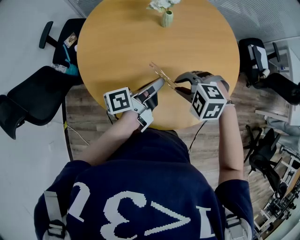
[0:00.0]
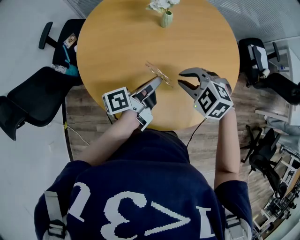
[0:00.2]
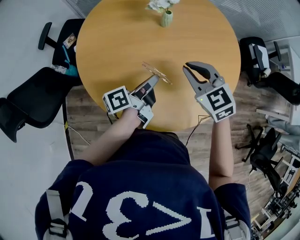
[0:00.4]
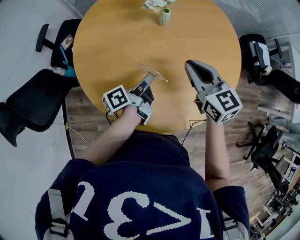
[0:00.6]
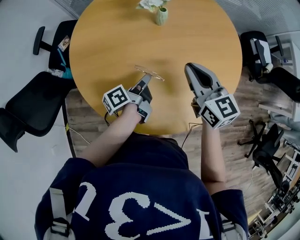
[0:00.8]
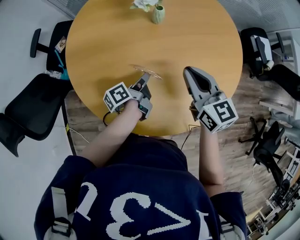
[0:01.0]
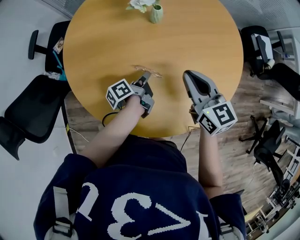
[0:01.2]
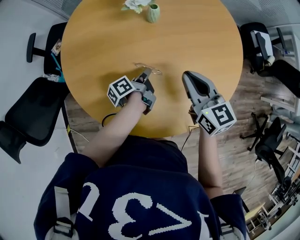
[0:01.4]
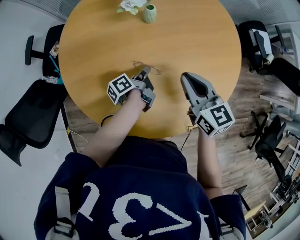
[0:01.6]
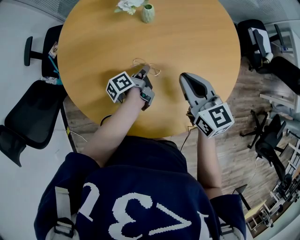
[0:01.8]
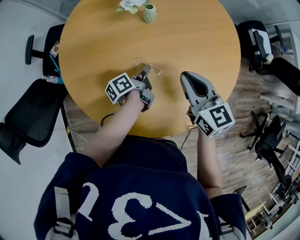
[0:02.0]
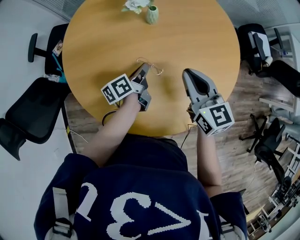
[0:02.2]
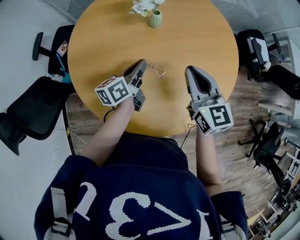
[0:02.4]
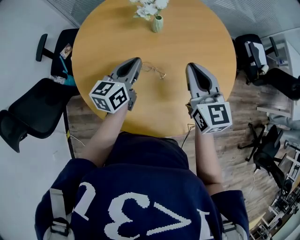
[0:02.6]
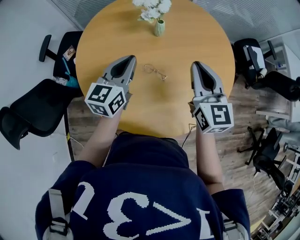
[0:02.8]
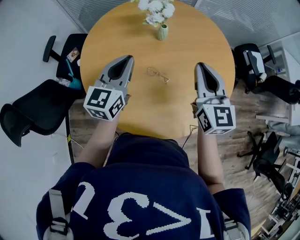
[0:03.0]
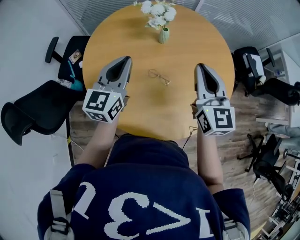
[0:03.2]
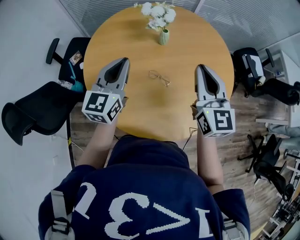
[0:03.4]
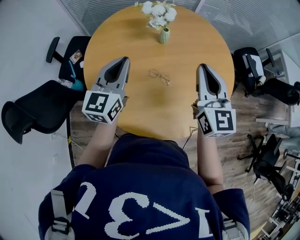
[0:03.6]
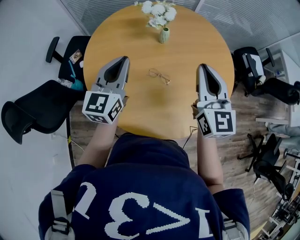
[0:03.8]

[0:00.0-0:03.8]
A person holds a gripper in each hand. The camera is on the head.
0:00.0 to 0:01.2: The right gripper moves forward and to the right, some 10 cm, and angles its fingers upward, by about 50 degrees, while the left gripper heads downward and forward, covering roughly 20 cm, and turns by some 30 degrees.
0:01.2 to 0:02.6: The left gripper goes approximately 20 cm upward, and rolls clockwise, seen from behind, by approximately 70 degrees; the right gripper travels upward by about 10 cm.
0:02.6 to 0:03.8: The right gripper goes about 10 cm upward. Meanwhile the left gripper travels upward and to the left by roughly 15 cm, and turns by approximately 30 degrees.

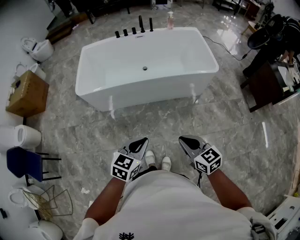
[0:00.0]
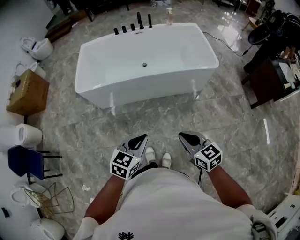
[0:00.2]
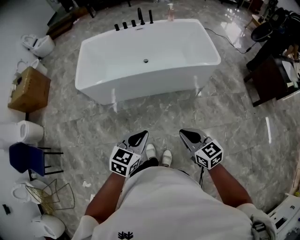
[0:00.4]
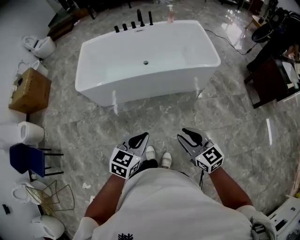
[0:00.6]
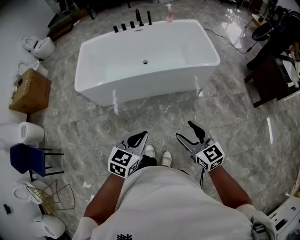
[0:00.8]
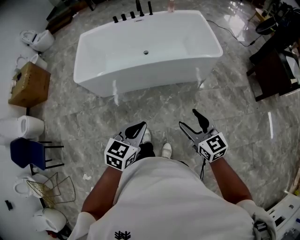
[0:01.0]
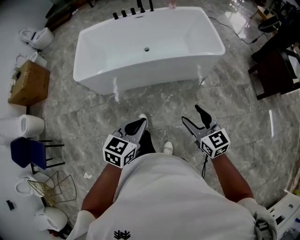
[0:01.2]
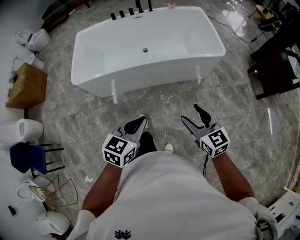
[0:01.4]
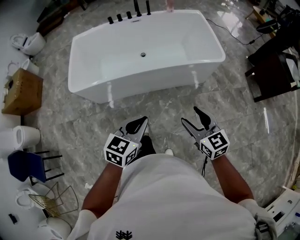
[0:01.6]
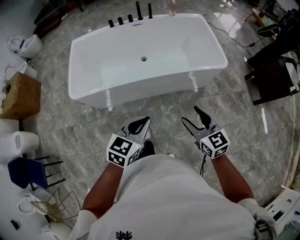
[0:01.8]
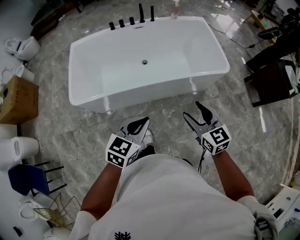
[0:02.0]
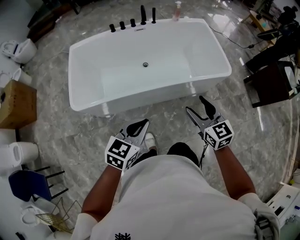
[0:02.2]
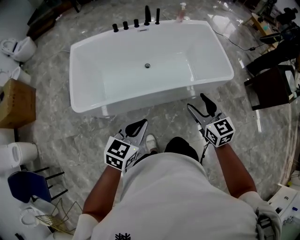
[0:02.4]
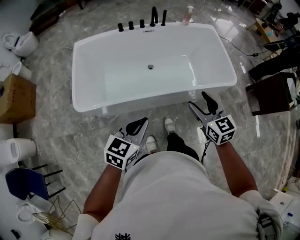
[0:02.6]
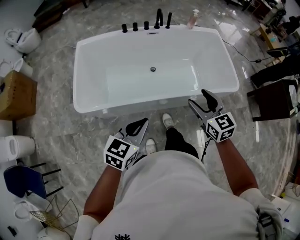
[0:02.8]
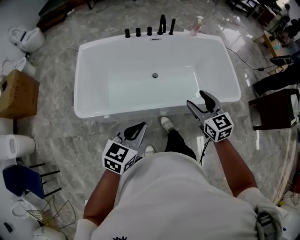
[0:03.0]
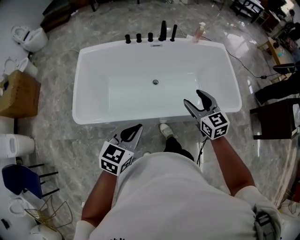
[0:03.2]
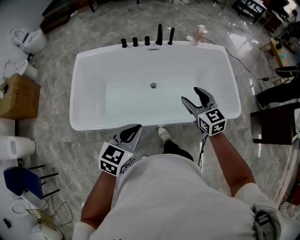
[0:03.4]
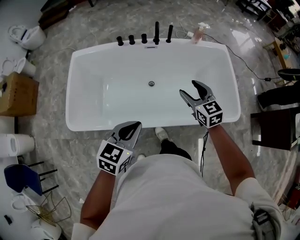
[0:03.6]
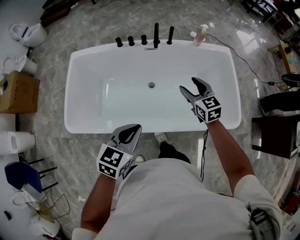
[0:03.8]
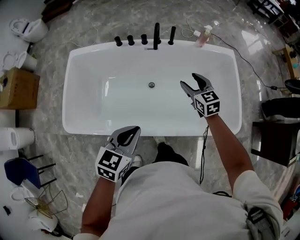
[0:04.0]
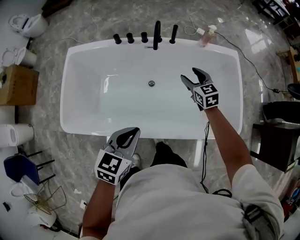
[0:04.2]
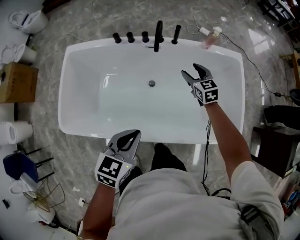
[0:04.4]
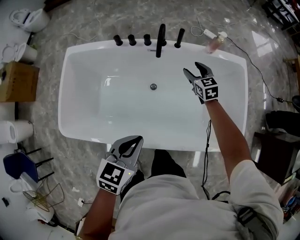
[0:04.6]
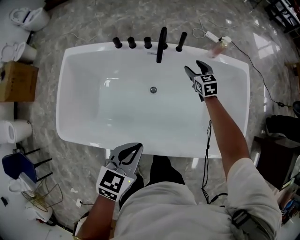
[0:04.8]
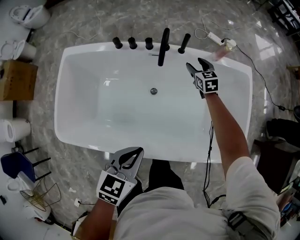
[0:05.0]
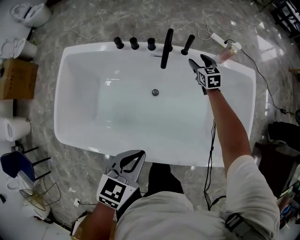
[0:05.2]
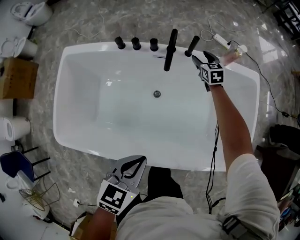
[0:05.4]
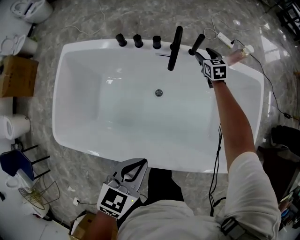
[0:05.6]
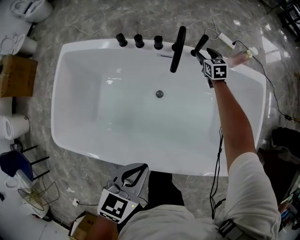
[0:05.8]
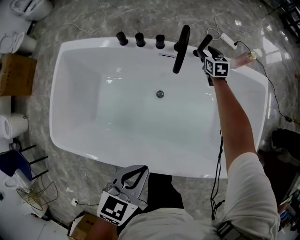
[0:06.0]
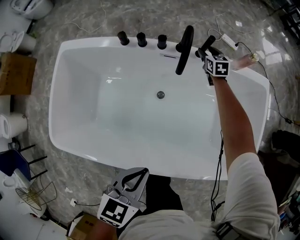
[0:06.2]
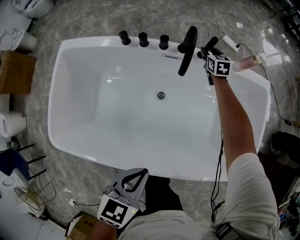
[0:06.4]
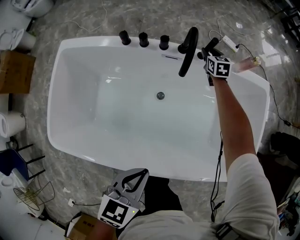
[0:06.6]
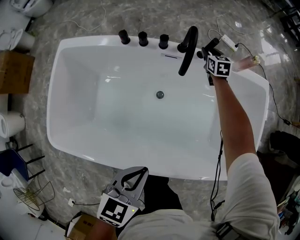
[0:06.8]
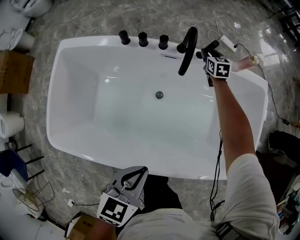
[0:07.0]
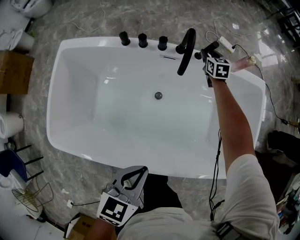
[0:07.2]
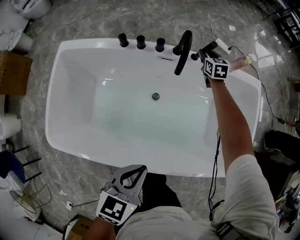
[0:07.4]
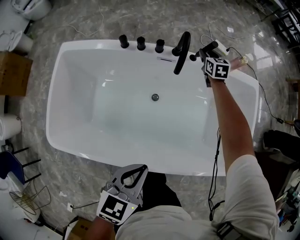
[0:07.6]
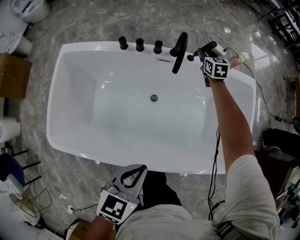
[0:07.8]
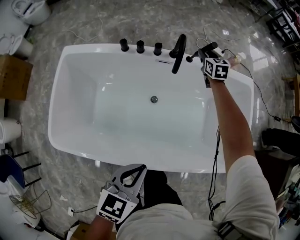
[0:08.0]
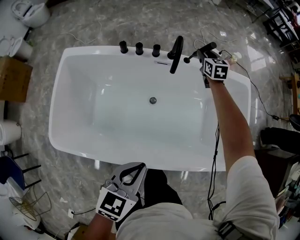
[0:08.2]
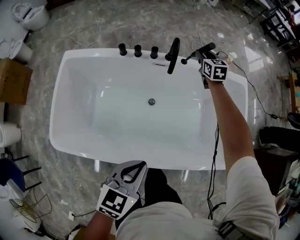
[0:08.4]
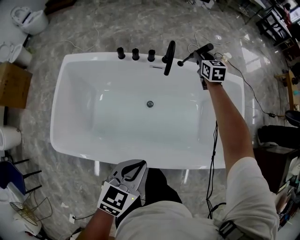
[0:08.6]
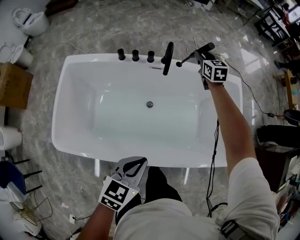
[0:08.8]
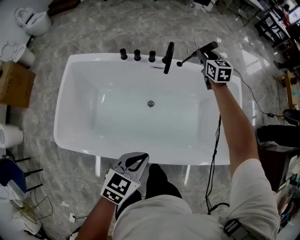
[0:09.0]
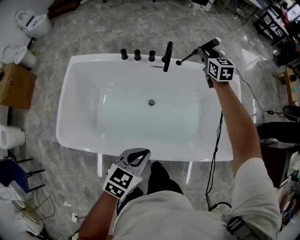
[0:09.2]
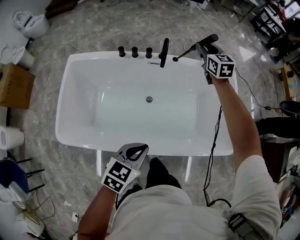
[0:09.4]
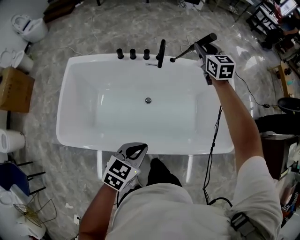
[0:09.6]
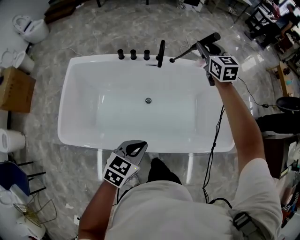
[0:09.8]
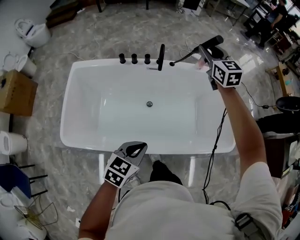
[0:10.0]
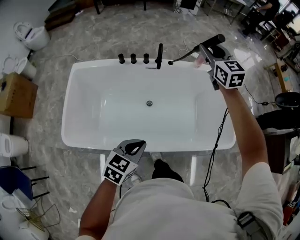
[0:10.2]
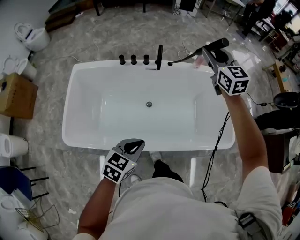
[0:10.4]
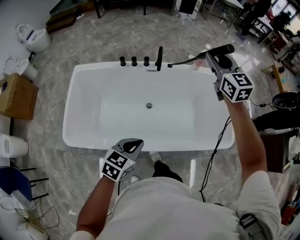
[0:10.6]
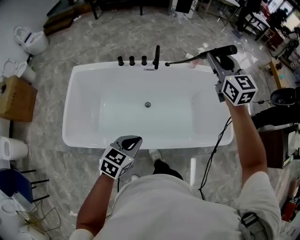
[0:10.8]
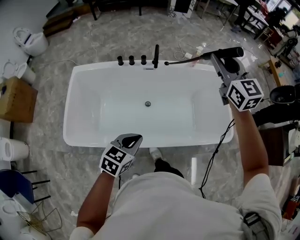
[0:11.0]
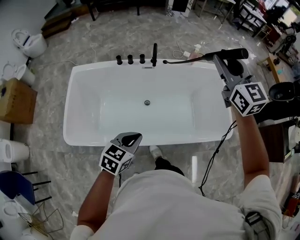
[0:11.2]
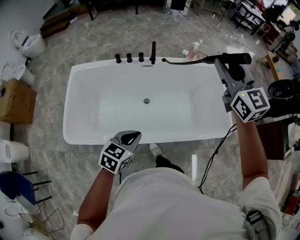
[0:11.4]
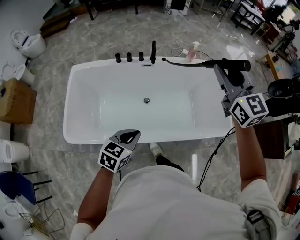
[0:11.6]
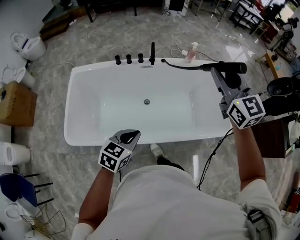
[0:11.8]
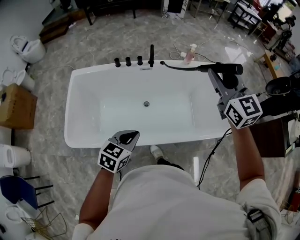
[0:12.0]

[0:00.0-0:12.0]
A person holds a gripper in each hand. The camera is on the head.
0:00.0 to 0:01.6: The two grippers go some 15 cm forward. The right gripper opens.
0:01.6 to 0:03.0: The two grippers go about 35 cm forward and to the left.
0:03.0 to 0:04.4: The right gripper moves forward, approximately 50 cm. The left gripper moves forward and to the right, roughly 35 cm.
0:04.4 to 0:06.0: The left gripper travels downward and forward by approximately 10 cm. The right gripper heads forward and downward, covering about 35 cm.
0:06.0 to 0:07.6: The right gripper goes approximately 5 cm upward.
0:07.6 to 0:09.0: The right gripper goes roughly 25 cm upward and backward. Meanwhile the left gripper goes roughly 5 cm backward.
0:09.0 to 0:10.4: The right gripper goes roughly 30 cm upward and backward. Meanwhile the left gripper goes some 5 cm backward.
0:10.4 to 0:12.0: The right gripper moves backward, roughly 20 cm.

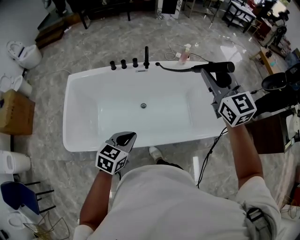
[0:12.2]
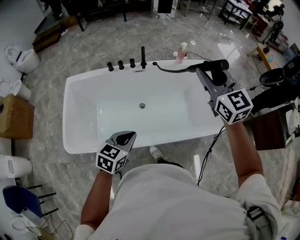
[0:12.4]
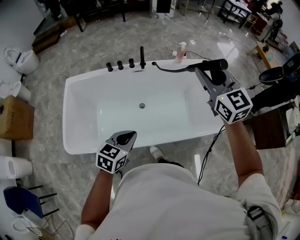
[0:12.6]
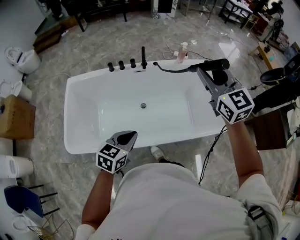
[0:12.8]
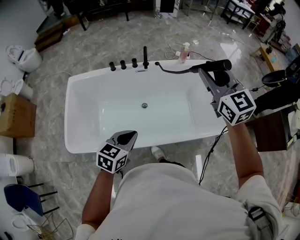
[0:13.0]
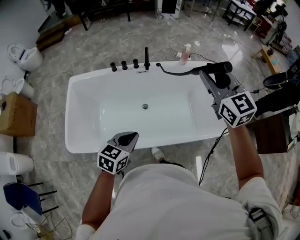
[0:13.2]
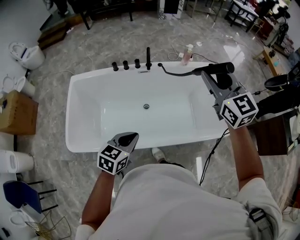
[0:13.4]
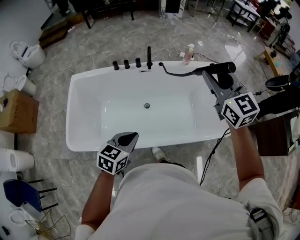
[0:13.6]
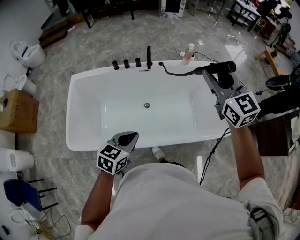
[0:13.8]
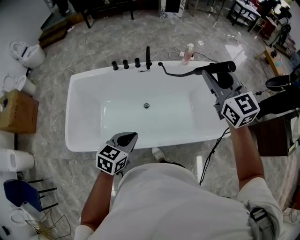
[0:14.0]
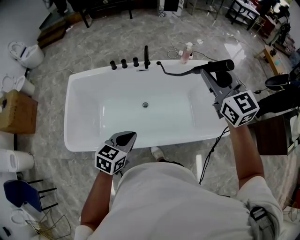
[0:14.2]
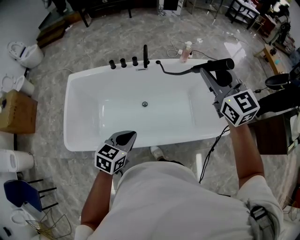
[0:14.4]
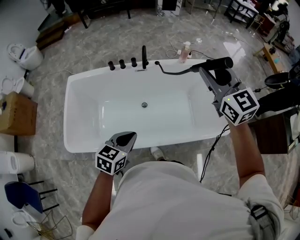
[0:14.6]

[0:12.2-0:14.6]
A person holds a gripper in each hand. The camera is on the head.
0:12.2 to 0:14.6: The grippers move only a little.

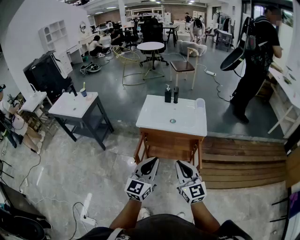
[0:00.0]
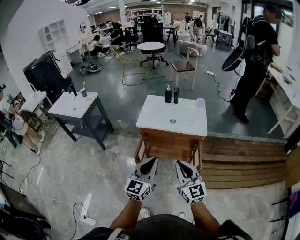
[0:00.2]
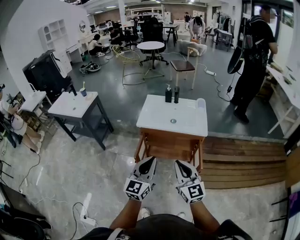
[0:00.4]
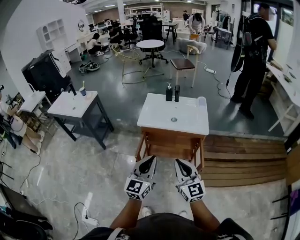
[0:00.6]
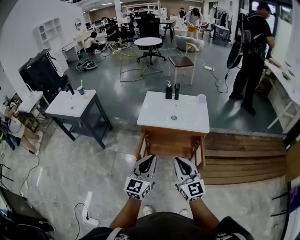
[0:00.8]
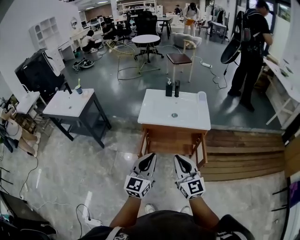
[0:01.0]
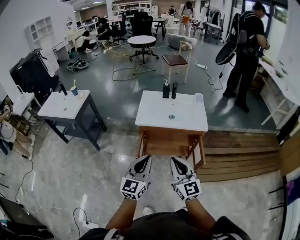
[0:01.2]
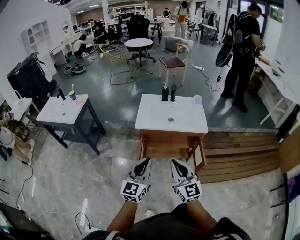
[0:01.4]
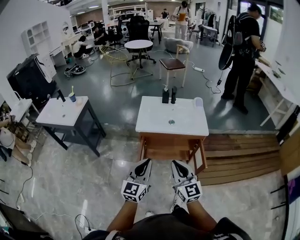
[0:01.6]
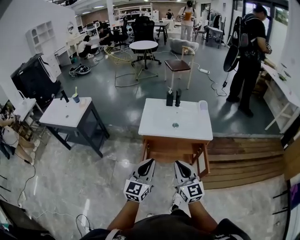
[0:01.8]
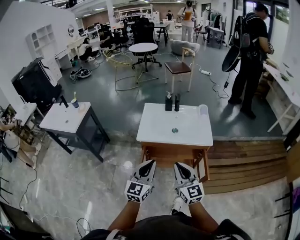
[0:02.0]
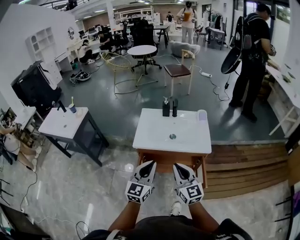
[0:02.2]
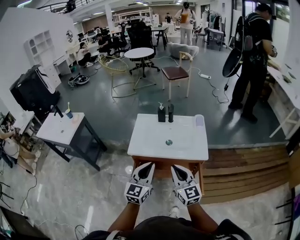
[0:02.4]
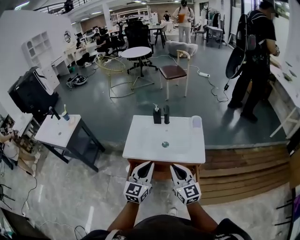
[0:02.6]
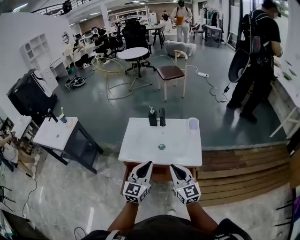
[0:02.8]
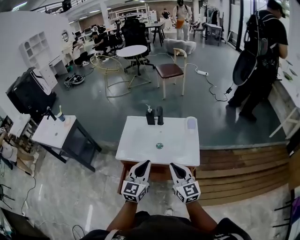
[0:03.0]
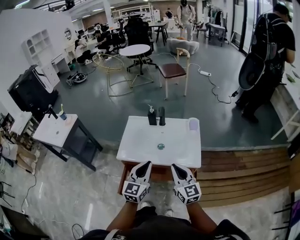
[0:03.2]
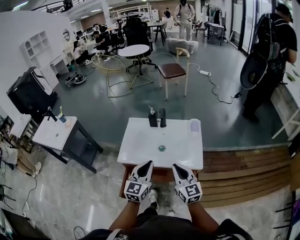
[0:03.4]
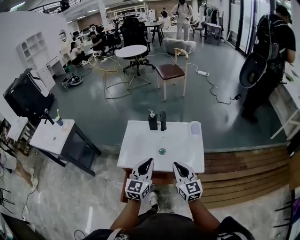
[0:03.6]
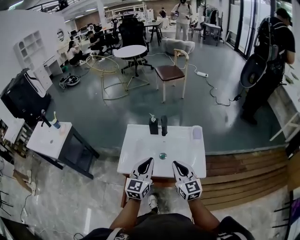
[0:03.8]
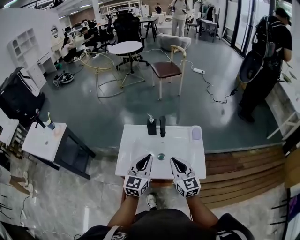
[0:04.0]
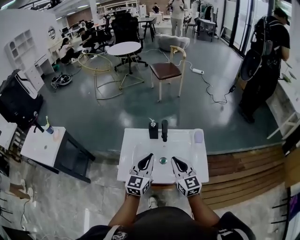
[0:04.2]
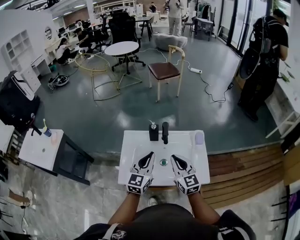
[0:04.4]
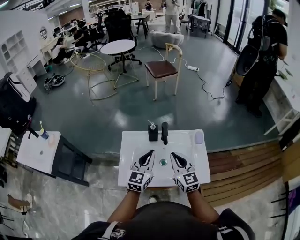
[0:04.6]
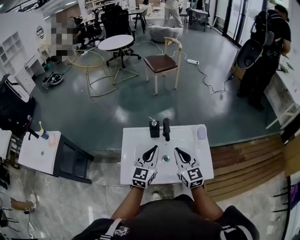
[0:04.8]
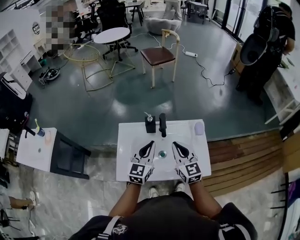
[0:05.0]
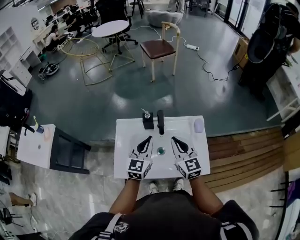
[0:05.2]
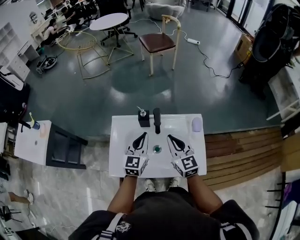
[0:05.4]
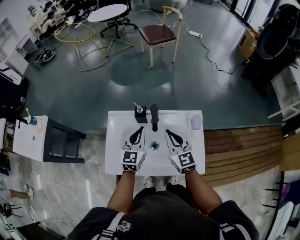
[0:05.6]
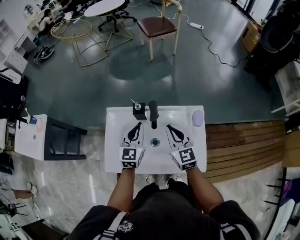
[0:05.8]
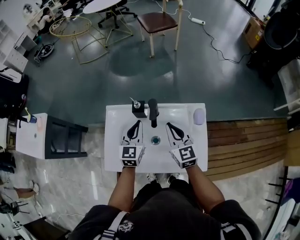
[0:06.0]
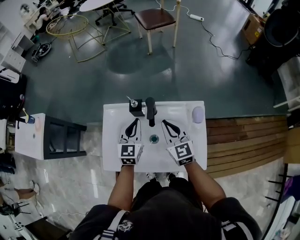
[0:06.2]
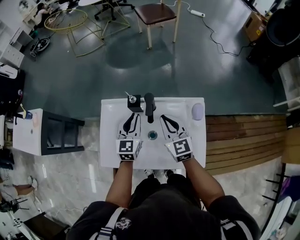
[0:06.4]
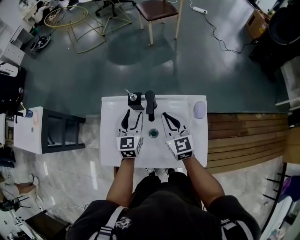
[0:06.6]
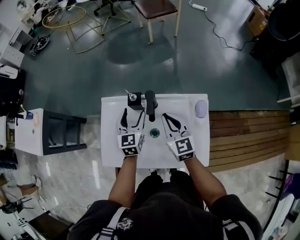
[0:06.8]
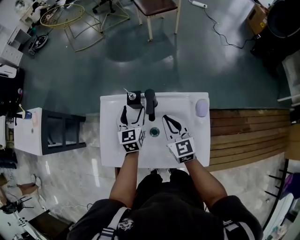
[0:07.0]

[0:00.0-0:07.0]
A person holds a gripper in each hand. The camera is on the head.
0:00.0 to 0:01.4: The grippers both shift to the left by some 10 cm.
0:01.4 to 0:02.8: The two grippers go roughly 30 cm forward and to the right.
0:02.8 to 0:04.2: The two grippers go about 20 cm forward.
0:04.2 to 0:05.6: The left gripper travels forward and downward by approximately 15 cm. The right gripper shifts some 15 cm forward.
0:05.6 to 0:07.0: The left gripper goes approximately 10 cm downward and forward, and opens, while the right gripper moves downward, approximately 10 cm.
